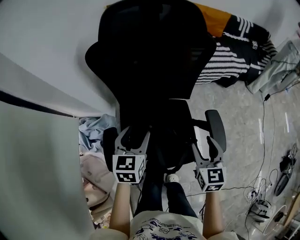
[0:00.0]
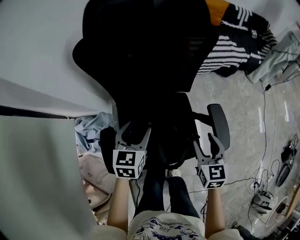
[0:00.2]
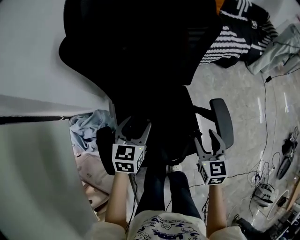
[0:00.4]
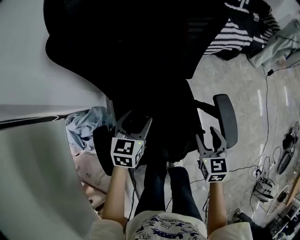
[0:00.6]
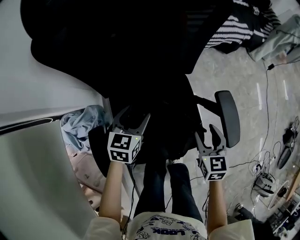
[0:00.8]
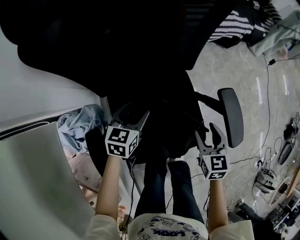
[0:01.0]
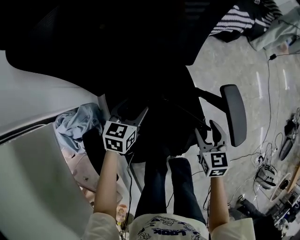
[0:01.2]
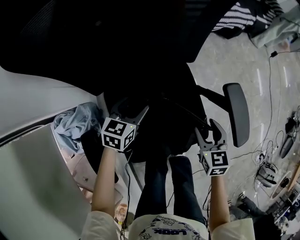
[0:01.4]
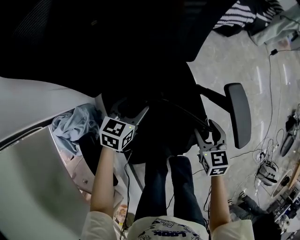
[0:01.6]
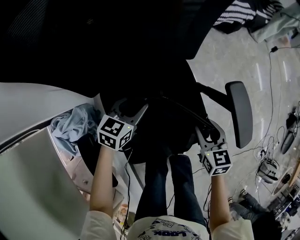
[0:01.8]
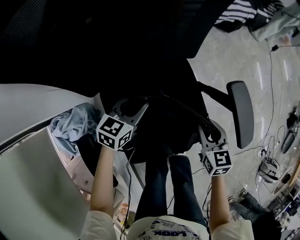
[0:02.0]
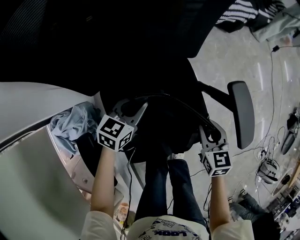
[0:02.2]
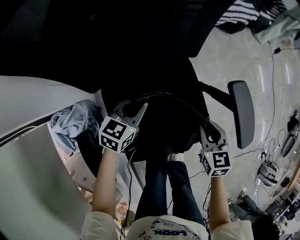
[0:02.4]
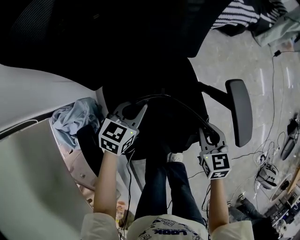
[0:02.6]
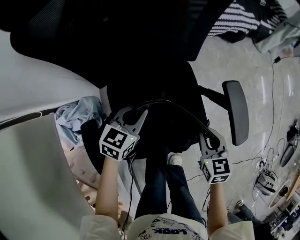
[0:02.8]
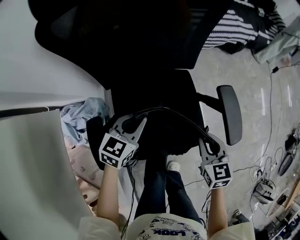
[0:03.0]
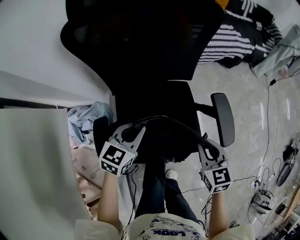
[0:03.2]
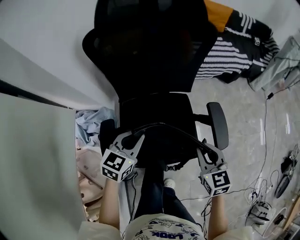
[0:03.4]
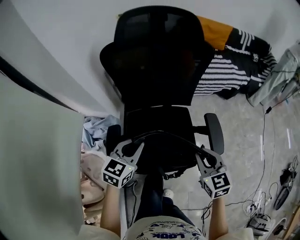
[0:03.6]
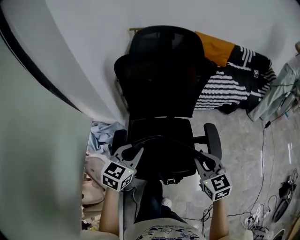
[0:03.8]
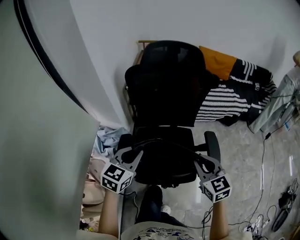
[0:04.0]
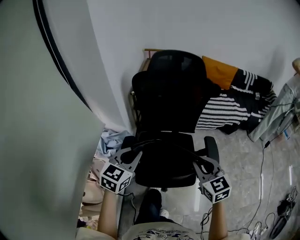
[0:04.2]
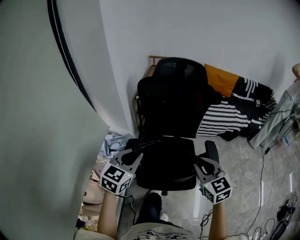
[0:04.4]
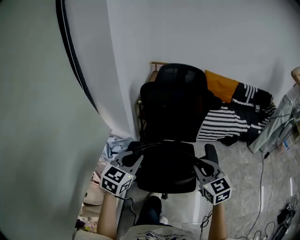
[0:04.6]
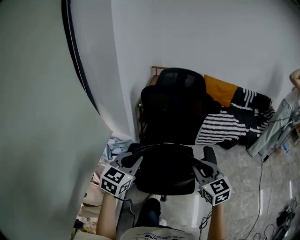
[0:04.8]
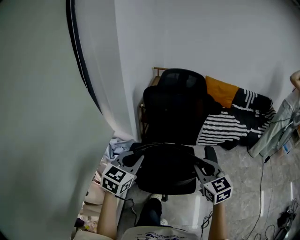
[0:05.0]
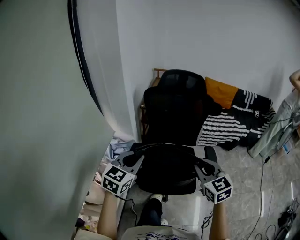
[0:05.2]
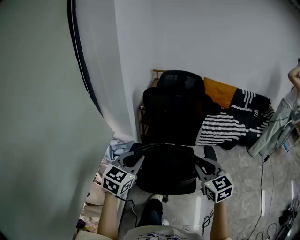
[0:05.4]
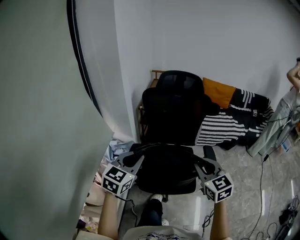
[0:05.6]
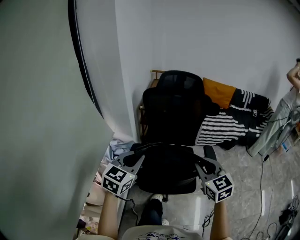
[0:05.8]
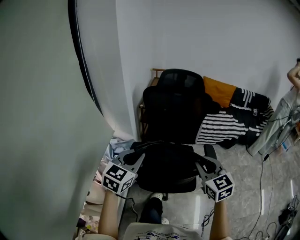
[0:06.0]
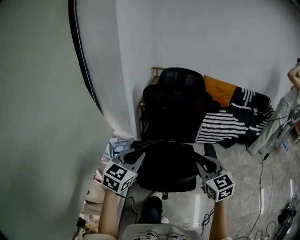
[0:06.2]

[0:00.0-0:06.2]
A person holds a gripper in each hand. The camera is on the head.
0:00.0 to 0:01.6: Both grippers move downward, approximately 25 cm. The left gripper changes its angle by about 30 degrees.
0:01.6 to 0:03.2: The two grippers go about 20 cm upward and backward. The right gripper closes. Meanwhile the left gripper closes up.
0:03.2 to 0:04.6: Both grippers move upward and backward, about 35 cm. The left gripper changes its angle by some 30 degrees. Meanwhile the right gripper rotates roughly 30 degrees.
0:04.6 to 0:06.2: The left gripper shifts by some 5 cm. Meanwhile the right gripper ends up approximately 5 cm from where it was.

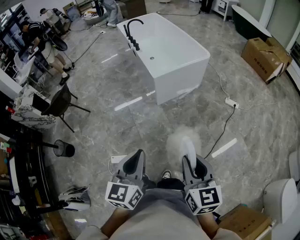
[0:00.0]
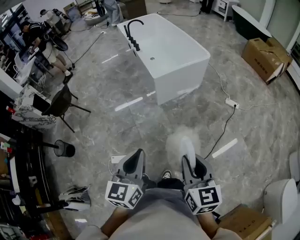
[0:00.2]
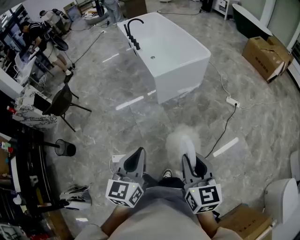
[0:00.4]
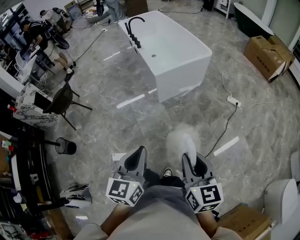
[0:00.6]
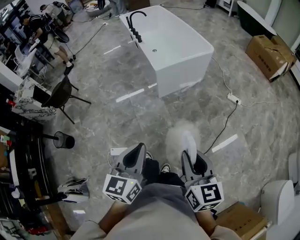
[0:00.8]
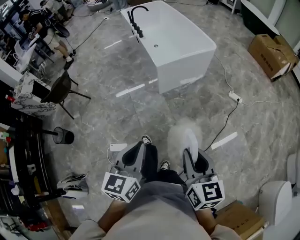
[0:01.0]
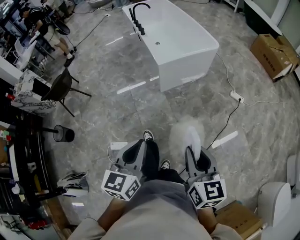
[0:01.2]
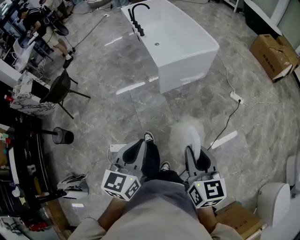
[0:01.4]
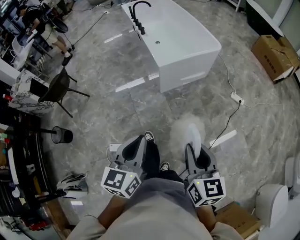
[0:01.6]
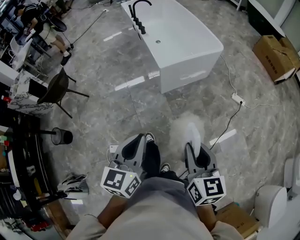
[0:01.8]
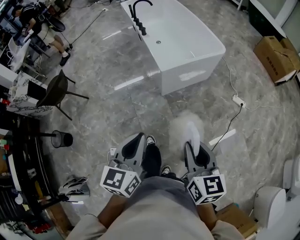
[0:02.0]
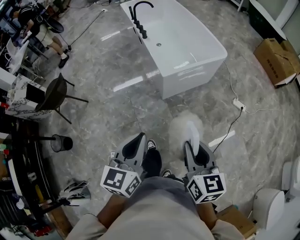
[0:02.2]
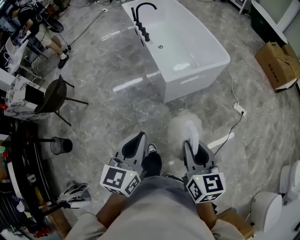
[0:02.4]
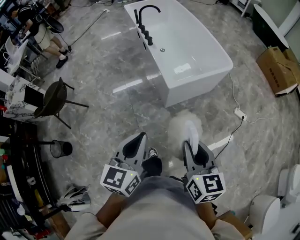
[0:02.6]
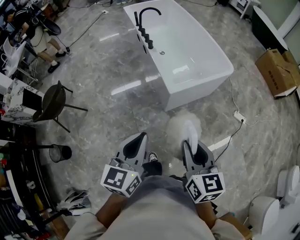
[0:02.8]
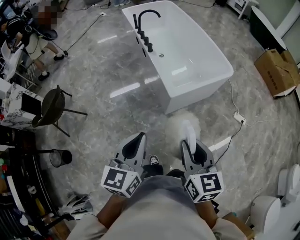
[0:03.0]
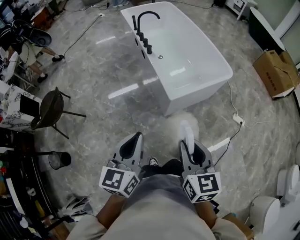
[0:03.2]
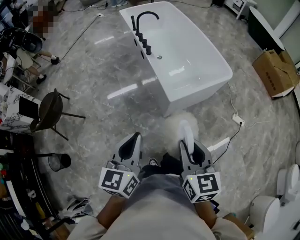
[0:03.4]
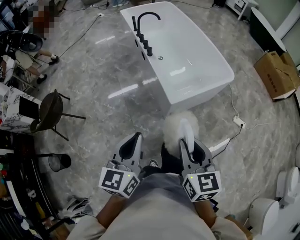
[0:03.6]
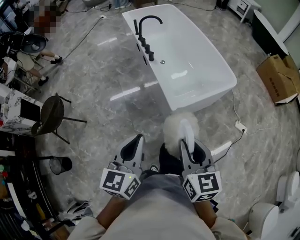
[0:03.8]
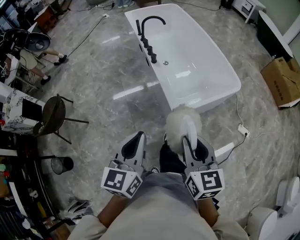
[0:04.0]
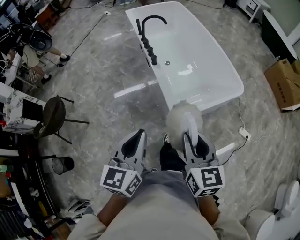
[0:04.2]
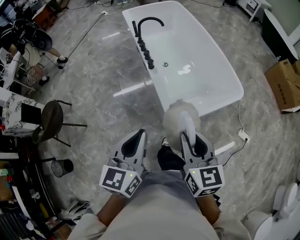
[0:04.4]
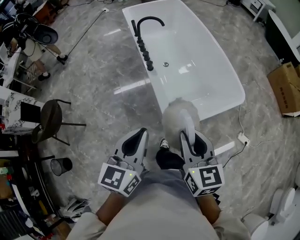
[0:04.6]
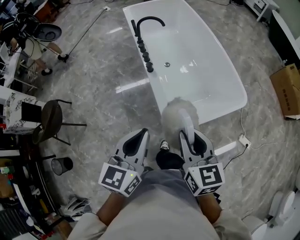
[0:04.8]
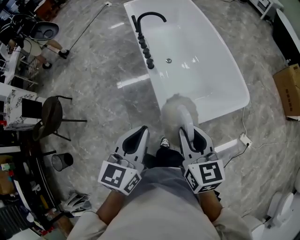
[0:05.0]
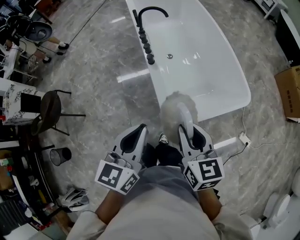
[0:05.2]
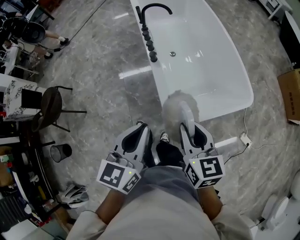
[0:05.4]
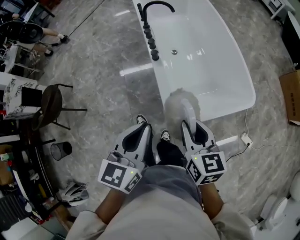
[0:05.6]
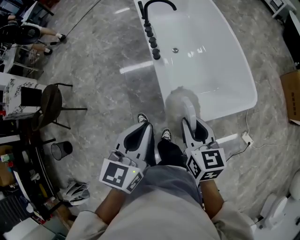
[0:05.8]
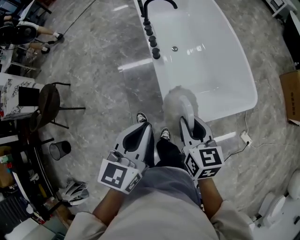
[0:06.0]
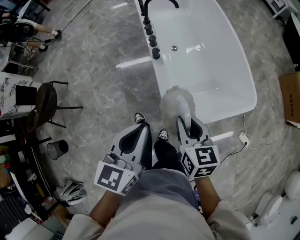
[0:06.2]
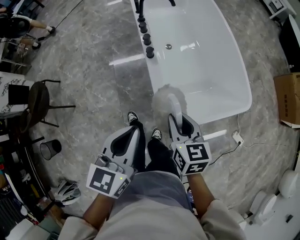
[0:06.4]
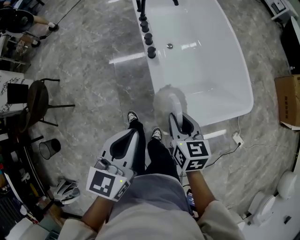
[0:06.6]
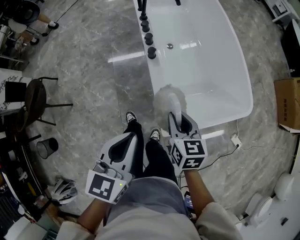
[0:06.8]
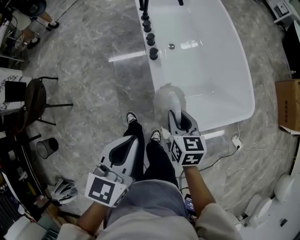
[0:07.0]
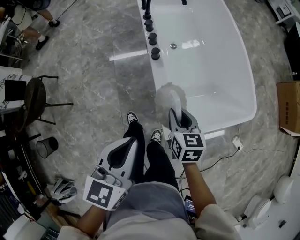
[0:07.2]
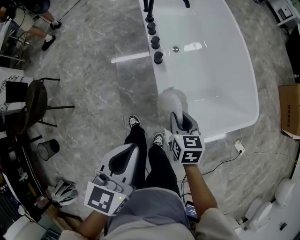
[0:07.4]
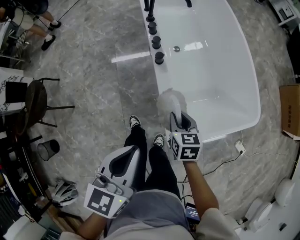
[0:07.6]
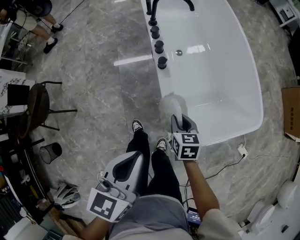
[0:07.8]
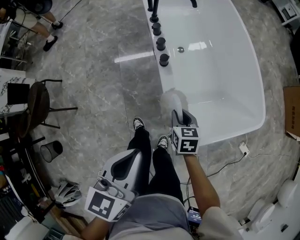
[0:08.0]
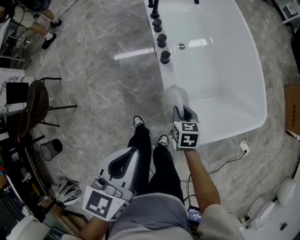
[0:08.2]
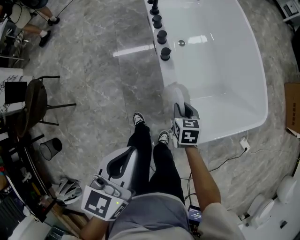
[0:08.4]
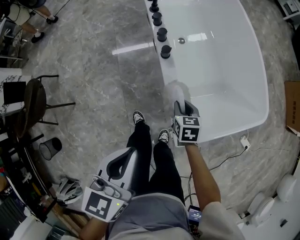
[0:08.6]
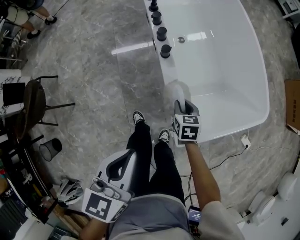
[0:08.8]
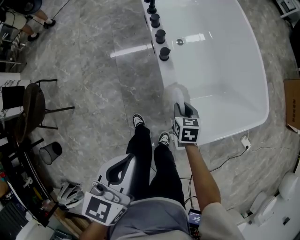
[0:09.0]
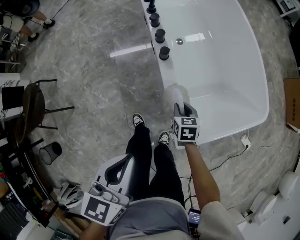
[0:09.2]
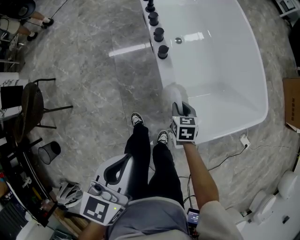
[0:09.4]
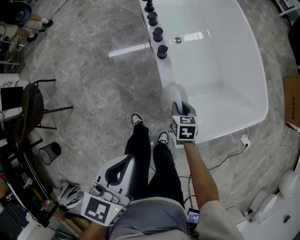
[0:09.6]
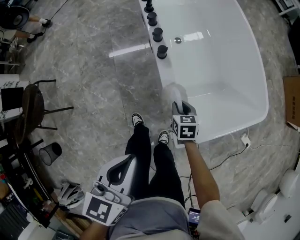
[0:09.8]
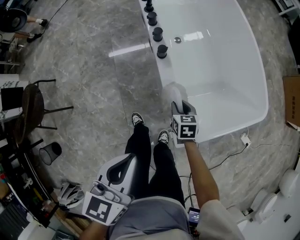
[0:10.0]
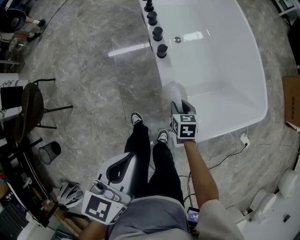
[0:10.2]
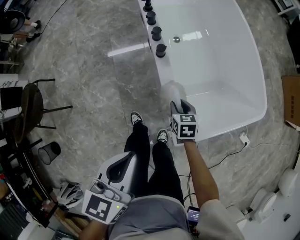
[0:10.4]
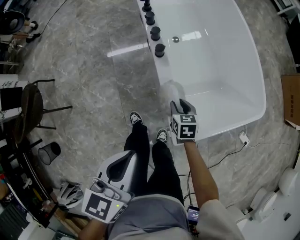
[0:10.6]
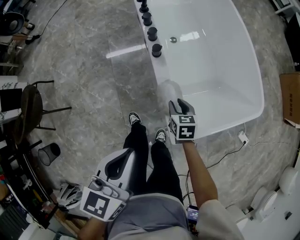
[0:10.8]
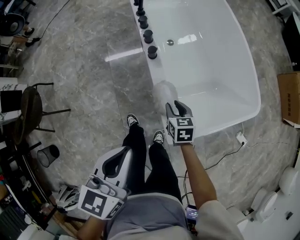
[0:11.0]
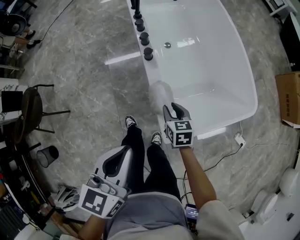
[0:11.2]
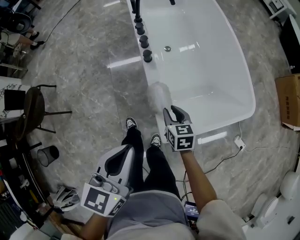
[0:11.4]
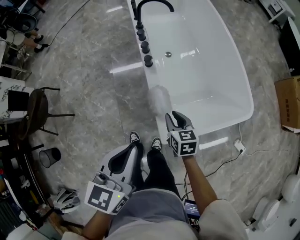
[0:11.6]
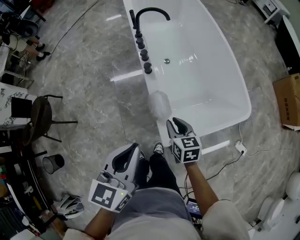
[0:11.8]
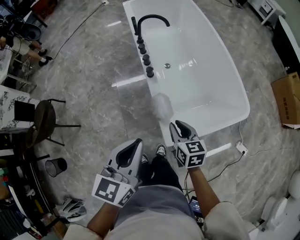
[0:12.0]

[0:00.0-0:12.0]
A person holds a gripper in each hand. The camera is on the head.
0:00.0 to 0:01.6: The two grippers go roughly 10 cm forward.
0:01.6 to 0:03.0: The grippers both shift forward and to the left by some 35 cm.
0:03.0 to 0:04.4: Both grippers move forward, about 25 cm.
0:04.4 to 0:06.0: Both grippers move forward and downward, some 15 cm.
0:06.0 to 0:07.6: The right gripper goes approximately 20 cm downward and forward, while the left gripper goes some 10 cm downward and to the left.
0:07.6 to 0:09.0: The right gripper heads downward, covering roughly 10 cm, while the left gripper changes place by roughly 5 cm.
0:09.0 to 0:10.4: The grippers stay close to where they were, moving slightly.
0:10.4 to 0:12.0: The left gripper moves upward and to the right, approximately 15 cm; the right gripper heads upward and backward, covering approximately 25 cm.

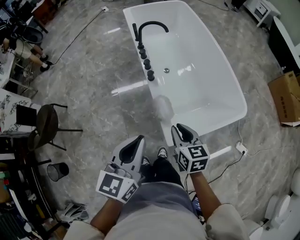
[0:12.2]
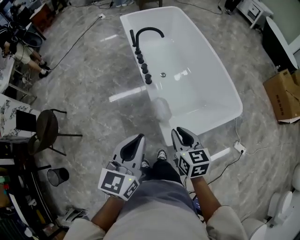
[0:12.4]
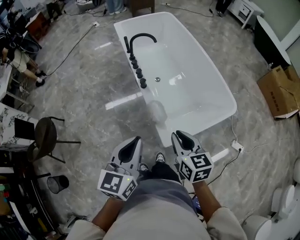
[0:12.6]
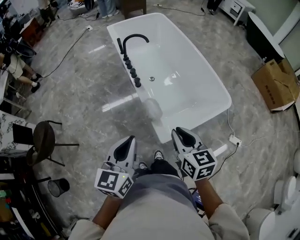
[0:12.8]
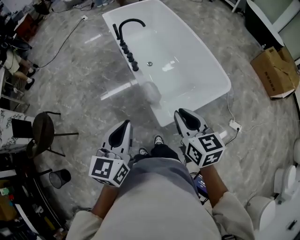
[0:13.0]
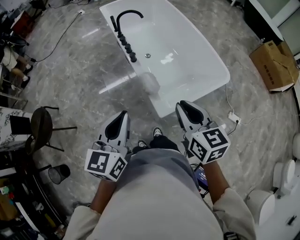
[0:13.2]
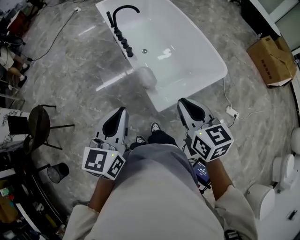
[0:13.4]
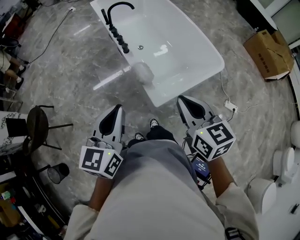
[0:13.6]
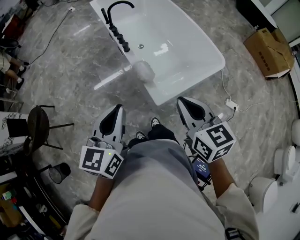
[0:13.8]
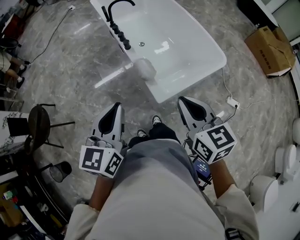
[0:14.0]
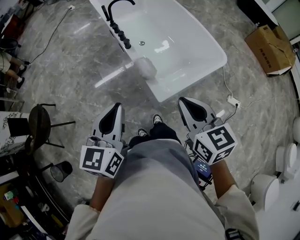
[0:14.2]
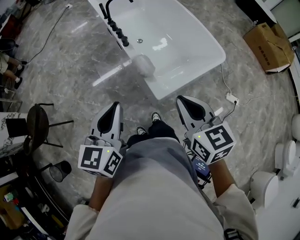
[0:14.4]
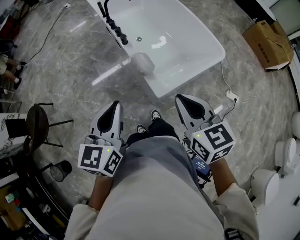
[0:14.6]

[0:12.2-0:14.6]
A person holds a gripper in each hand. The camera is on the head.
0:12.2 to 0:13.4: The right gripper is displaced upward and backward by approximately 20 cm; the left gripper goes some 10 cm backward.
0:13.4 to 0:14.6: The right gripper ends up approximately 5 cm from where it was.

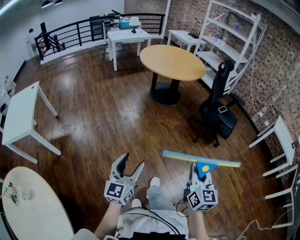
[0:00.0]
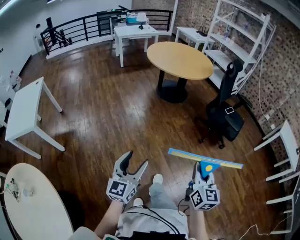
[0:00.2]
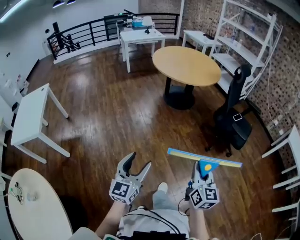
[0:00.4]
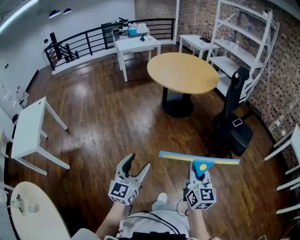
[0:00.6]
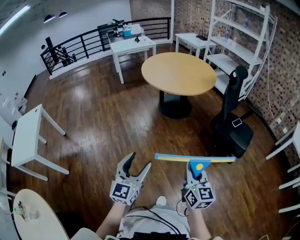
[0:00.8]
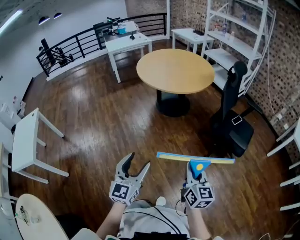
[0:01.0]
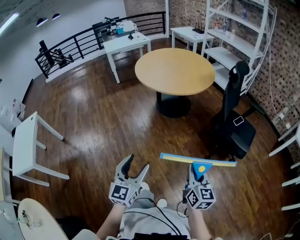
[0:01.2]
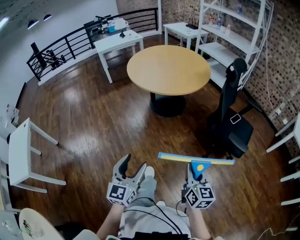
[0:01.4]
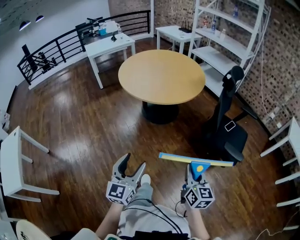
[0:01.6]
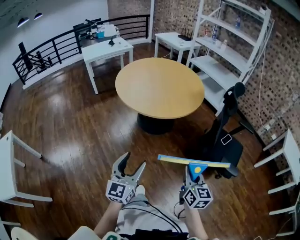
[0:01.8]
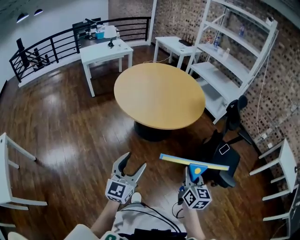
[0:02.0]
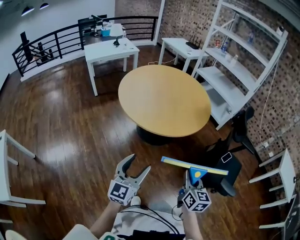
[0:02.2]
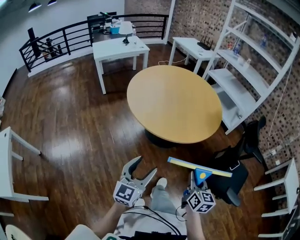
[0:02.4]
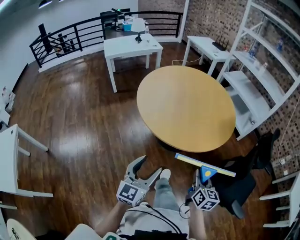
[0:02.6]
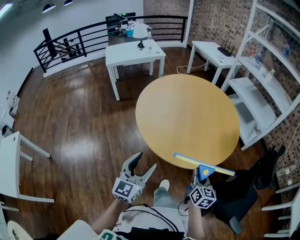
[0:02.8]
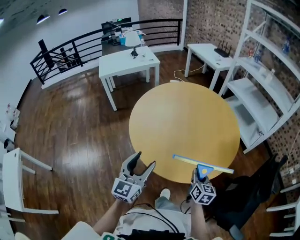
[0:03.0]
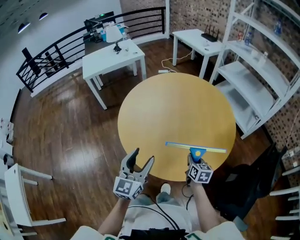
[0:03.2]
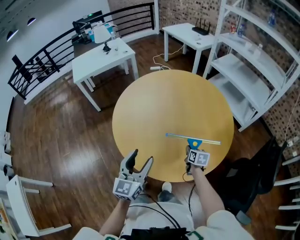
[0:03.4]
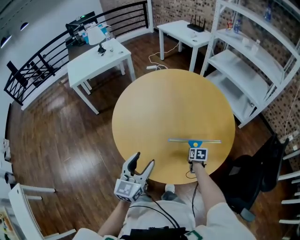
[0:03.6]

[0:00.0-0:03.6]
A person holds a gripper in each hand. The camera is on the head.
0:00.0 to 0:01.8: The pair of grippers is taken forward, about 60 cm.
0:01.8 to 0:03.6: The two grippers travel together, forward, approximately 70 cm. The right gripper moves downward, about 30 cm, and angles its fingers downward, by about 40 degrees.
